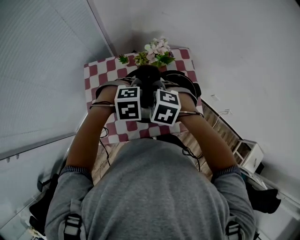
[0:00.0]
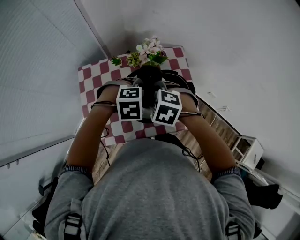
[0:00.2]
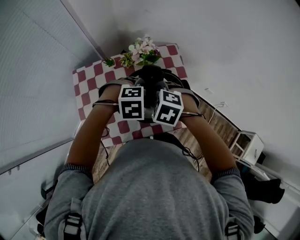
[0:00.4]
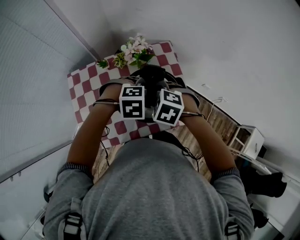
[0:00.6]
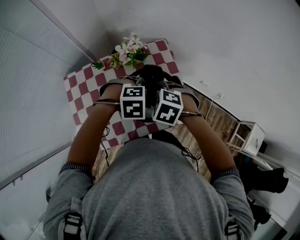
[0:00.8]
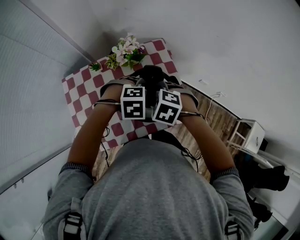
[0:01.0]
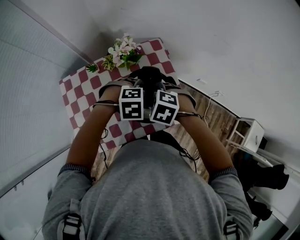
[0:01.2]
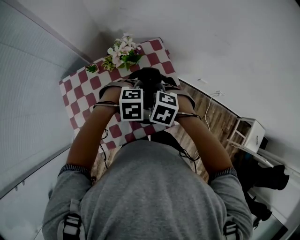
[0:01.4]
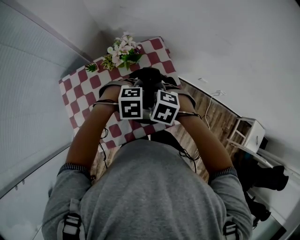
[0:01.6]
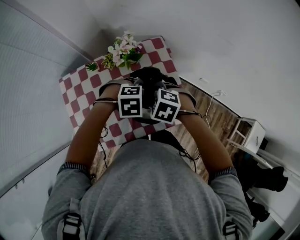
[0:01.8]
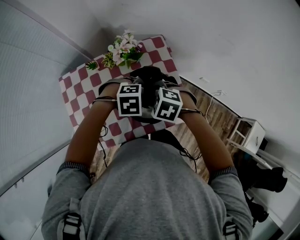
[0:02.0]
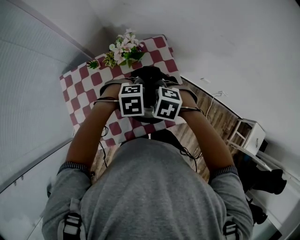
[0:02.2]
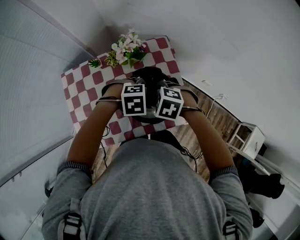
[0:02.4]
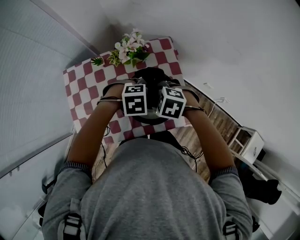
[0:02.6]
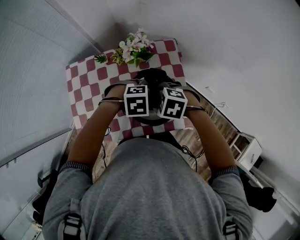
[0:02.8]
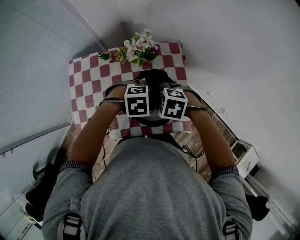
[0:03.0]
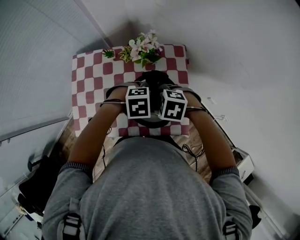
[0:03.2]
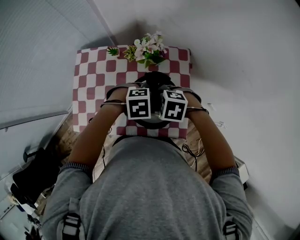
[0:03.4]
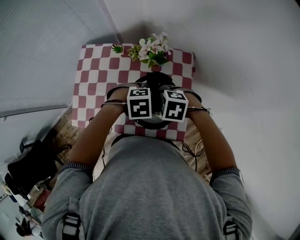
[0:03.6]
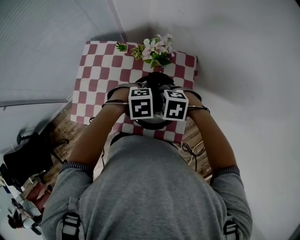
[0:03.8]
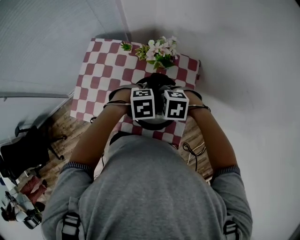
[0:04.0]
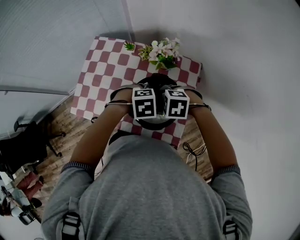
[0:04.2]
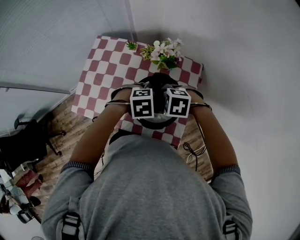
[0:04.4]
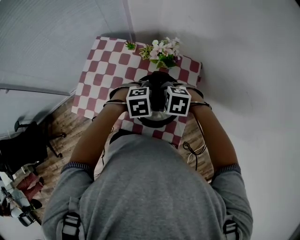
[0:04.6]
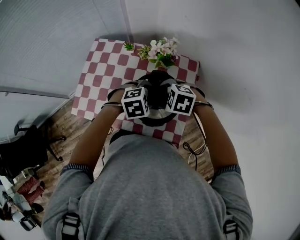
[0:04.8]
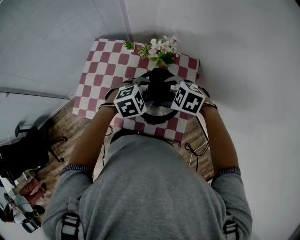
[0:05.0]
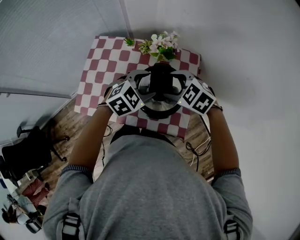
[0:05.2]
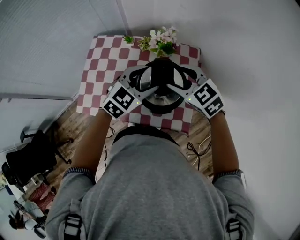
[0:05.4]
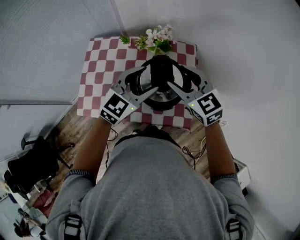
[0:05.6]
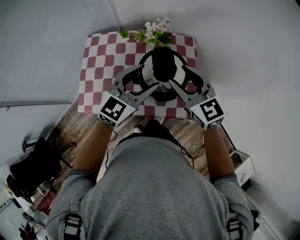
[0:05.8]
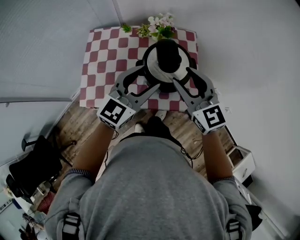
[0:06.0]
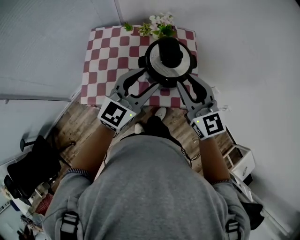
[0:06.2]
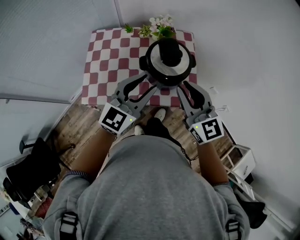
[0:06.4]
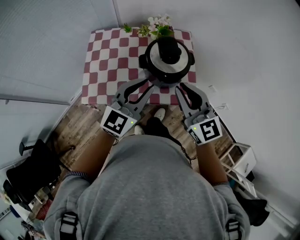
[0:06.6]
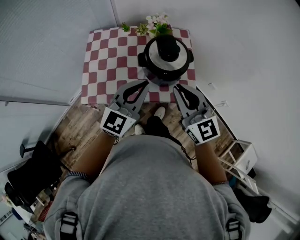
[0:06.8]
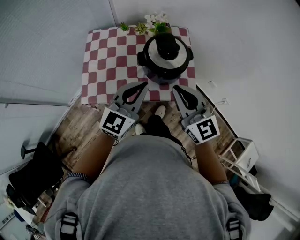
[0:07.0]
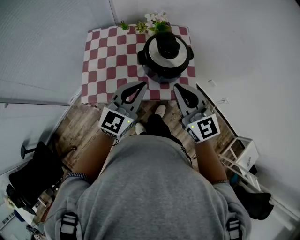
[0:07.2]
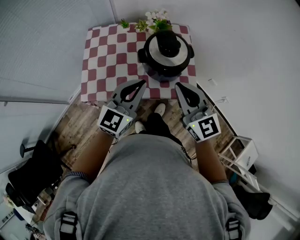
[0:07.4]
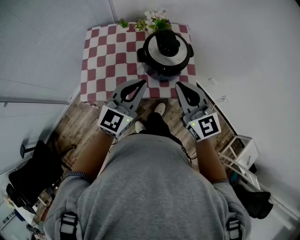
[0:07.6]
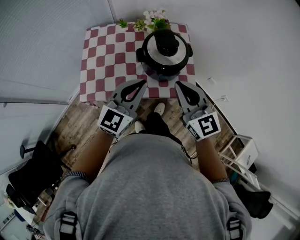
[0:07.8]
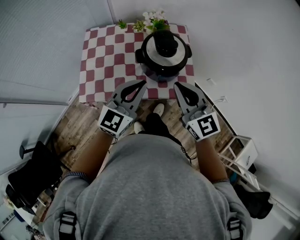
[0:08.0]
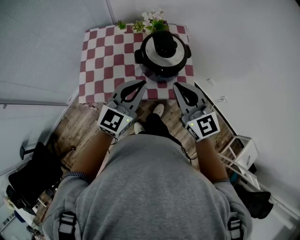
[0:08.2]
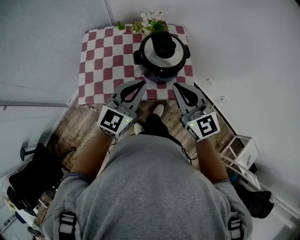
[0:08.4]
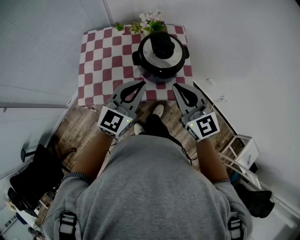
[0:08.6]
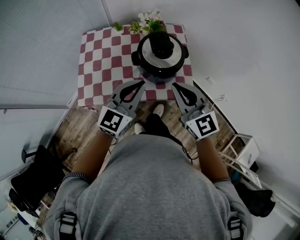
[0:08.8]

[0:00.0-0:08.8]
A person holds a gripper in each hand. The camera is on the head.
0:00.0 to 0:01.4: The right gripper changes place by some 15 cm; the left gripper ends up some 15 cm from where it was.
0:01.4 to 0:03.0: The right gripper rotates about 20 degrees.
0:03.0 to 0:04.4: The right gripper turns by approximately 30 degrees. The left gripper changes its angle by some 30 degrees.
0:04.4 to 0:05.8: The two grippers go roughly 15 cm upward. The right gripper points its fingers roughly 50 degrees further upward. The left gripper angles its fingers upward, by approximately 60 degrees.
0:05.8 to 0:07.4: The grippers both shift backward by about 15 cm. The left gripper closes. The right gripper closes up.
0:07.4 to 0:08.8: The grippers stay close to where they were, moving slightly.

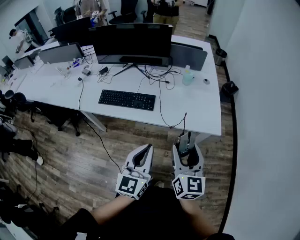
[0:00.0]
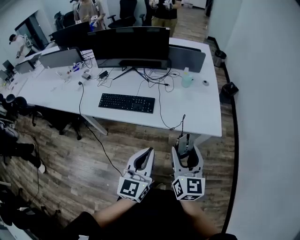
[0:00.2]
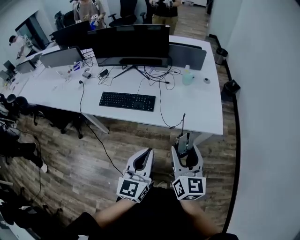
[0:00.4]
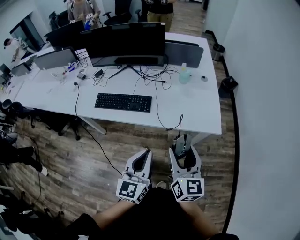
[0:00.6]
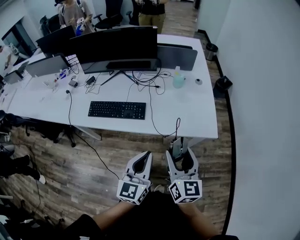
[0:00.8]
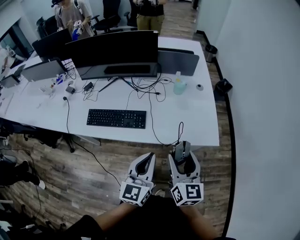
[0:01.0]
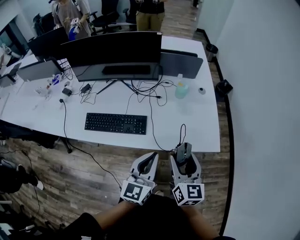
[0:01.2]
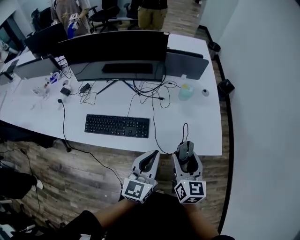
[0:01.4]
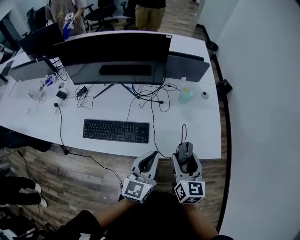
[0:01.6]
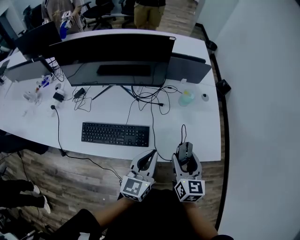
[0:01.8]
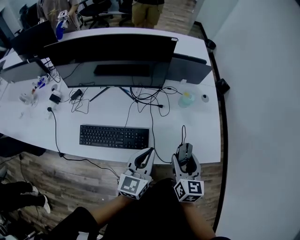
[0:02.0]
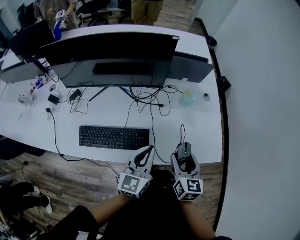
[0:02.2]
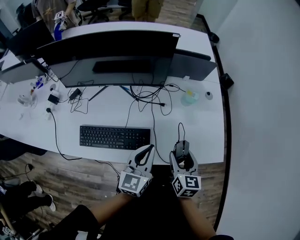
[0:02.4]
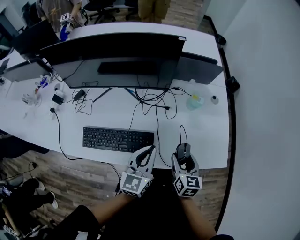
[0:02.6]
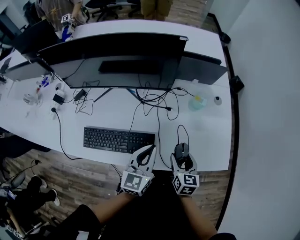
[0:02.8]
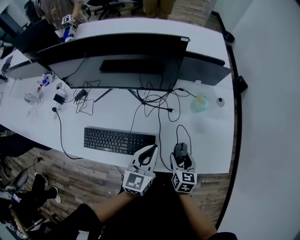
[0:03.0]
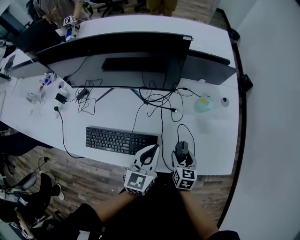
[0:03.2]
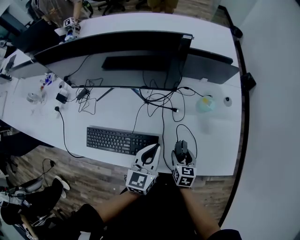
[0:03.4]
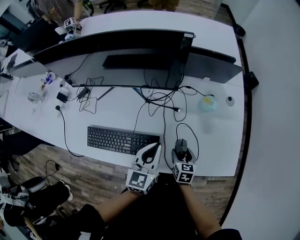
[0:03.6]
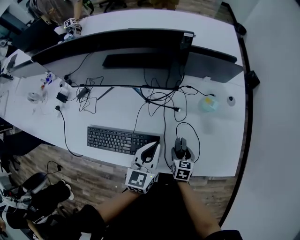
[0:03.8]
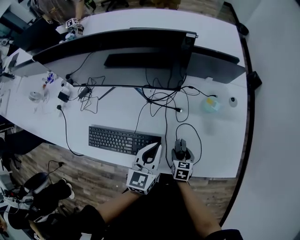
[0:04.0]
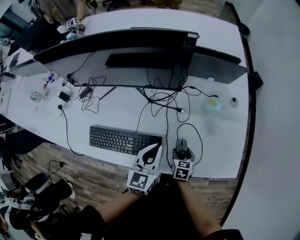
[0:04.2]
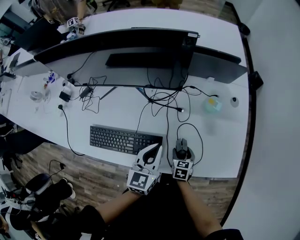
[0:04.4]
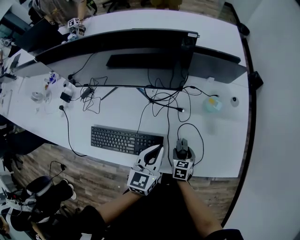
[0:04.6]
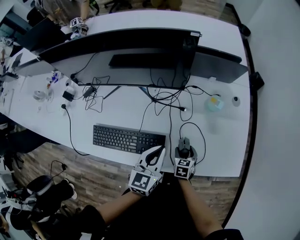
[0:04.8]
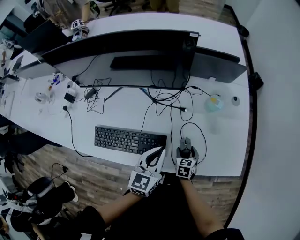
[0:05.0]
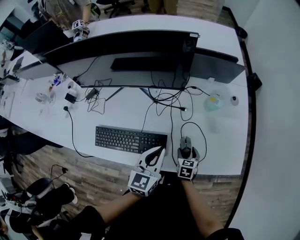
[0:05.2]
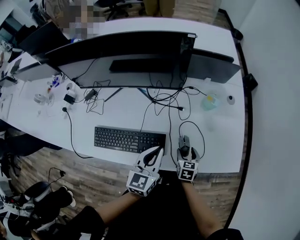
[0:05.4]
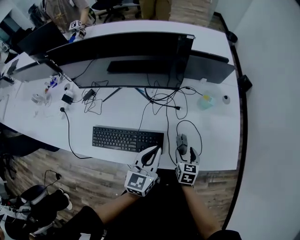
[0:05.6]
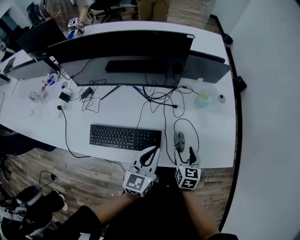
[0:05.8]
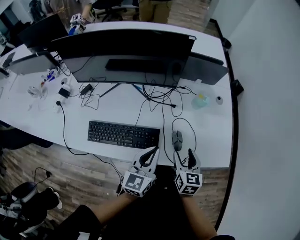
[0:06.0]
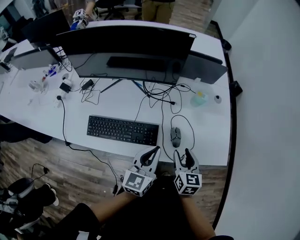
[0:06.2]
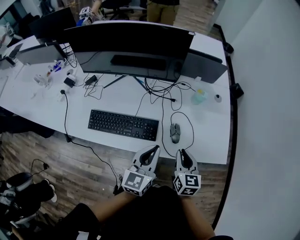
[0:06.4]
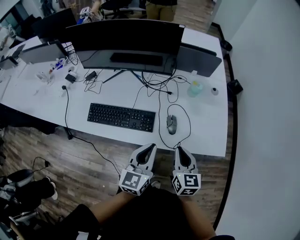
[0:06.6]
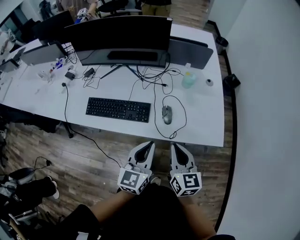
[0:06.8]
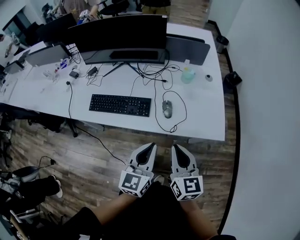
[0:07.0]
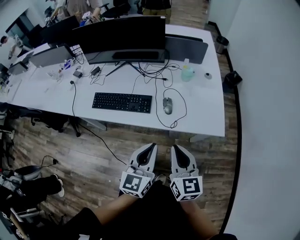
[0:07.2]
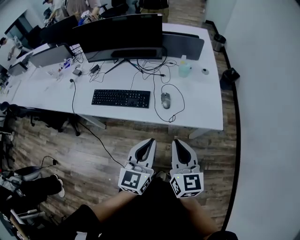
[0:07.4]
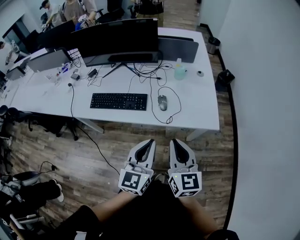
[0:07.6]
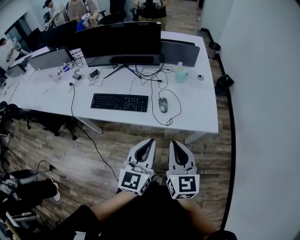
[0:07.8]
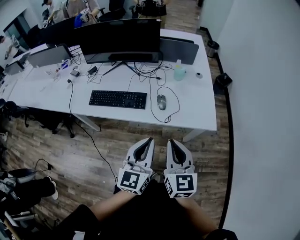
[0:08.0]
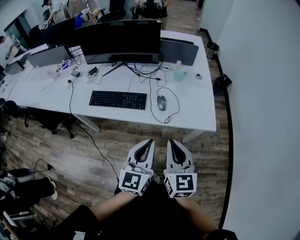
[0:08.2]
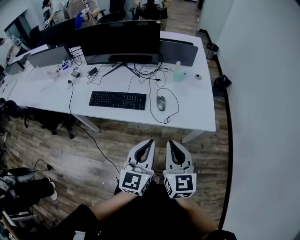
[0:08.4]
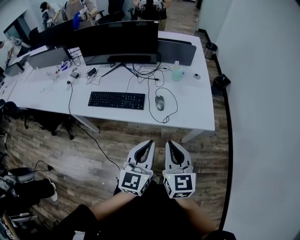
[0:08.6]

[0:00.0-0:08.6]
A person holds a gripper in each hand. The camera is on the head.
0:00.0 to 0:01.4: The grippers both shift forward by some 20 cm.
0:01.4 to 0:02.8: The right gripper heads downward and forward, covering roughly 20 cm, while the left gripper heads forward, downward and to the left, covering approximately 20 cm.
0:02.8 to 0:04.4: The left gripper changes place by about 5 cm, while the right gripper travels downward by approximately 15 cm, and turns by some 20 degrees.
0:04.4 to 0:05.8: The right gripper heads upward, covering about 15 cm. The left gripper travels backward by approximately 5 cm.
0:05.8 to 0:07.2: The right gripper travels backward and upward by about 30 cm, turns by some 30 degrees, and closes its fingers; the left gripper moves backward and to the right, about 30 cm.
0:07.2 to 0:08.6: The two grippers go roughly 5 cm backward.

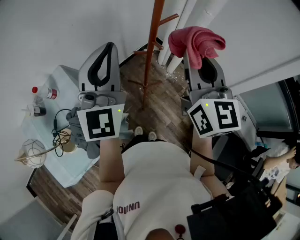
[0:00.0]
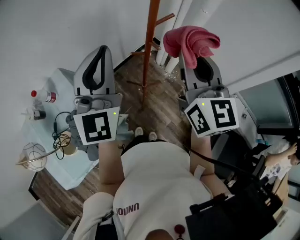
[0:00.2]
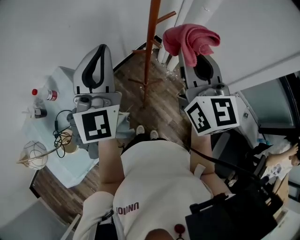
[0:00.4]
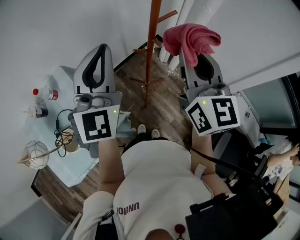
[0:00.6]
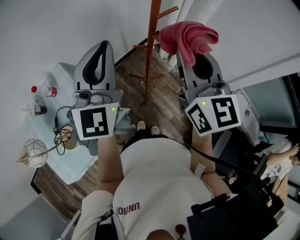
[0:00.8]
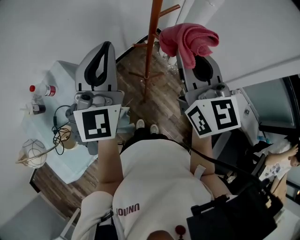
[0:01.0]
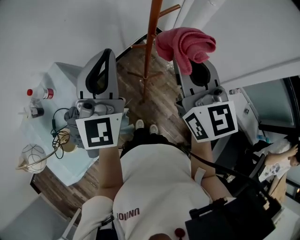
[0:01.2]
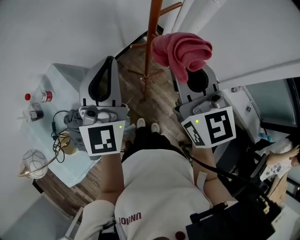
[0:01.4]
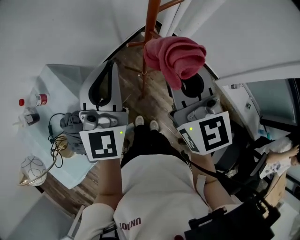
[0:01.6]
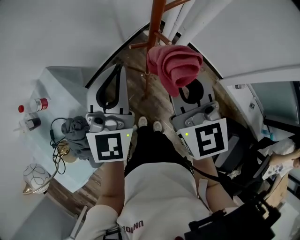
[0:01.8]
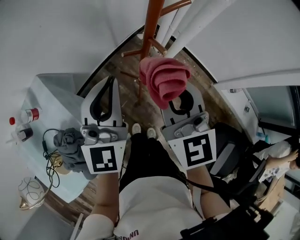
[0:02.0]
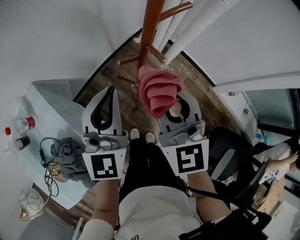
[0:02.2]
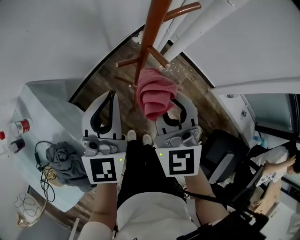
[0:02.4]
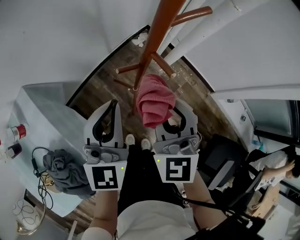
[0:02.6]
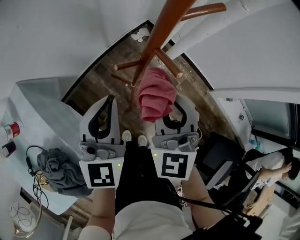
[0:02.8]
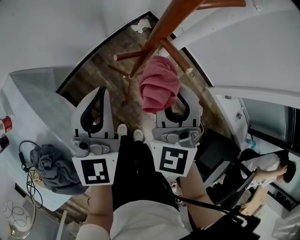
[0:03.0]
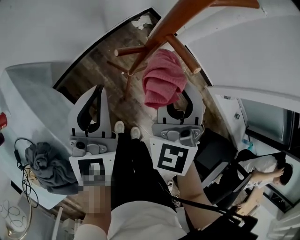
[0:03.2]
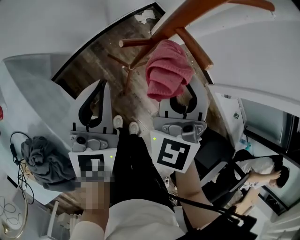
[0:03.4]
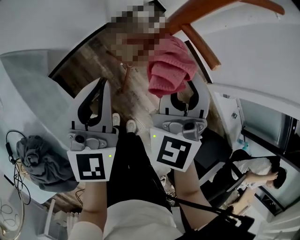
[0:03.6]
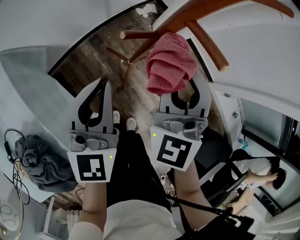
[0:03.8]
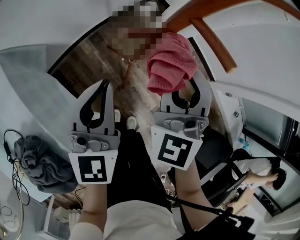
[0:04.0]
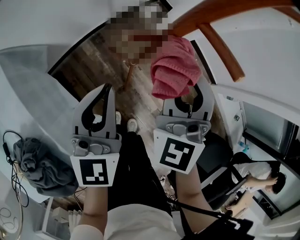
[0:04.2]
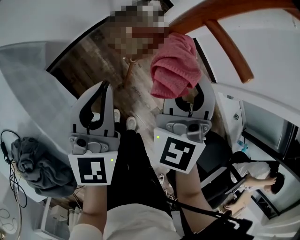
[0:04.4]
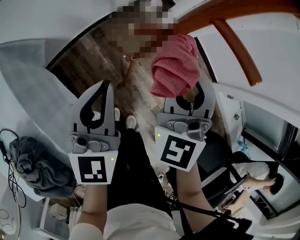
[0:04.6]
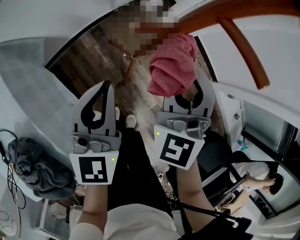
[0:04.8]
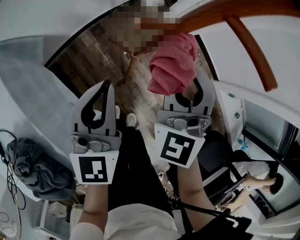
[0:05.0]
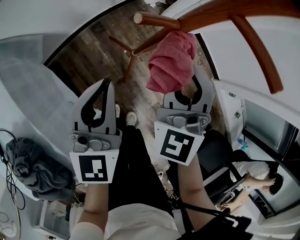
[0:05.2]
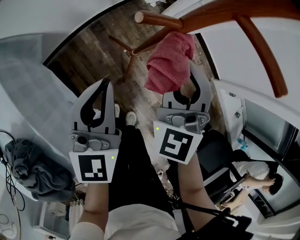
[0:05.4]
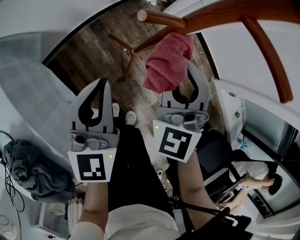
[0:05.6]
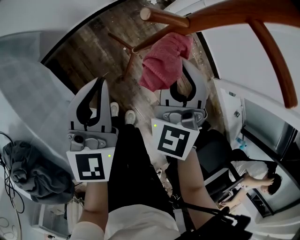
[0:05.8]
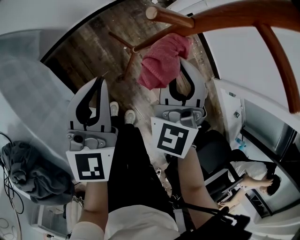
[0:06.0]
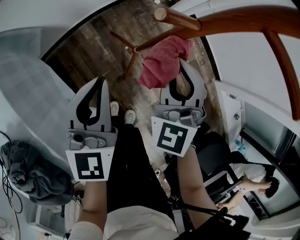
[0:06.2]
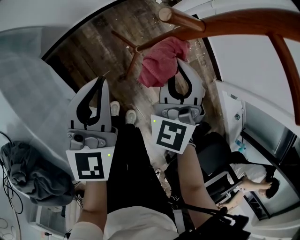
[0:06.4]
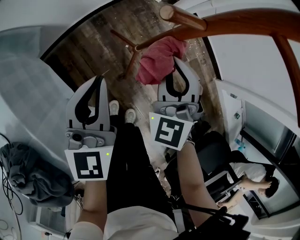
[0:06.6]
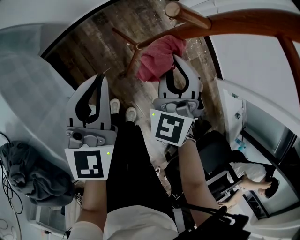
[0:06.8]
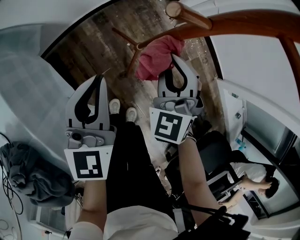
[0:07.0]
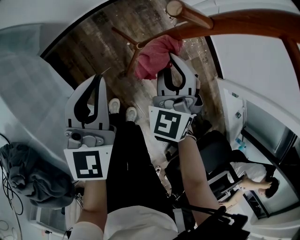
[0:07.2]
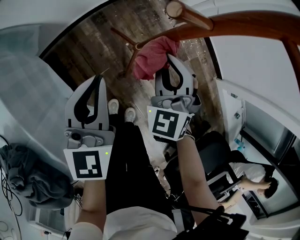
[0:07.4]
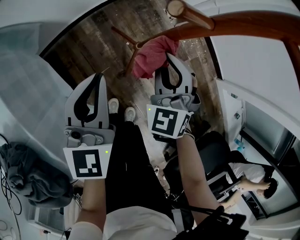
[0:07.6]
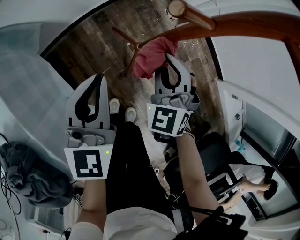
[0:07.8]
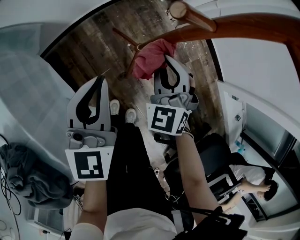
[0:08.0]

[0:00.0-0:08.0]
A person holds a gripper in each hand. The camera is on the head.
0:00.0 to 0:01.6: Both grippers travel together downward, roughly 10 cm.
0:01.6 to 0:03.2: The right gripper goes roughly 20 cm downward and forward, and turns by about 40 degrees. Meanwhile the left gripper moves downward, some 15 cm.
0:03.2 to 0:04.8: Both grippers move downward, about 5 cm.
0:04.8 to 0:06.4: The left gripper moves about 5 cm. Meanwhile the right gripper travels downward by some 10 cm.
0:06.4 to 0:08.0: The right gripper moves downward, roughly 10 cm.
